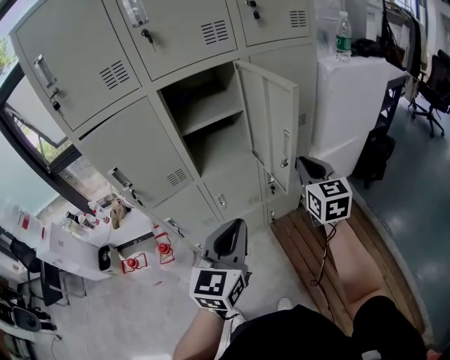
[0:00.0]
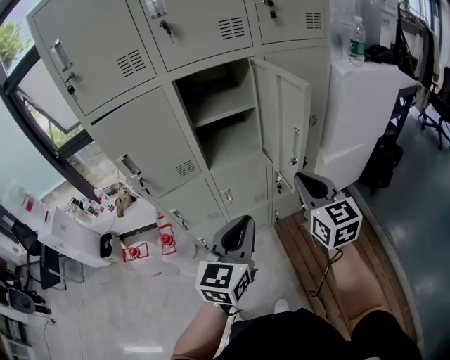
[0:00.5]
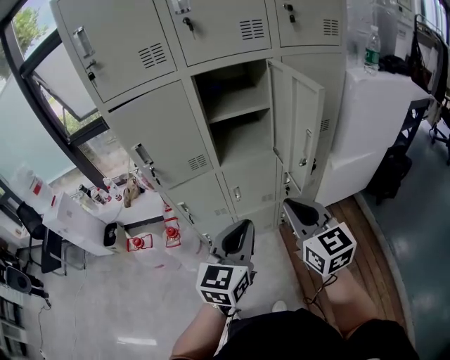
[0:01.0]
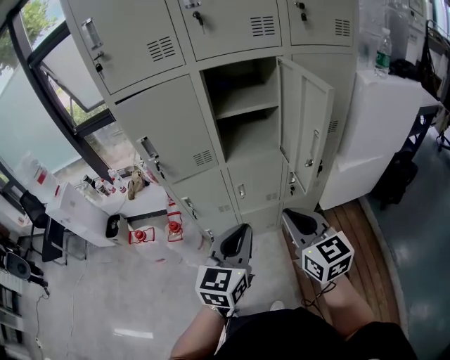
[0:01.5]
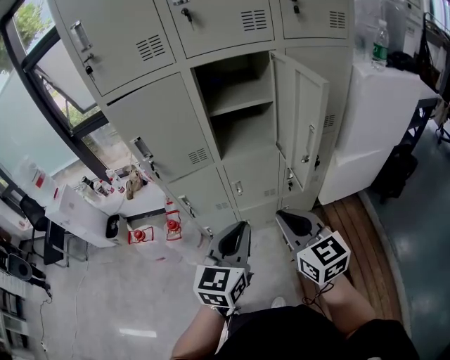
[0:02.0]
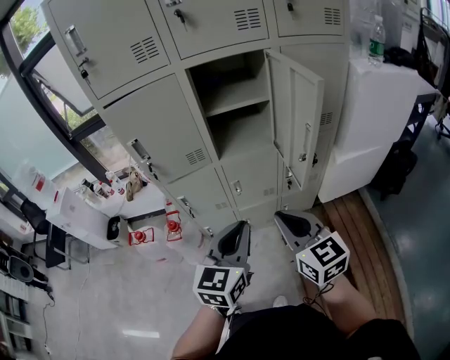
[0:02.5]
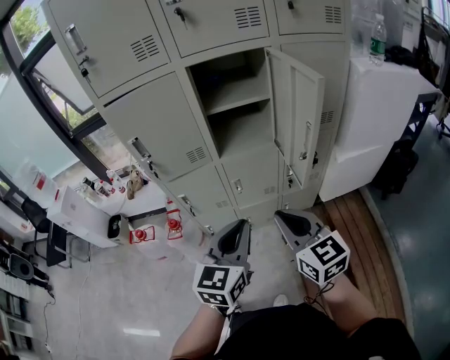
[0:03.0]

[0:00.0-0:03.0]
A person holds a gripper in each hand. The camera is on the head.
0:00.0 to 0:01.5: The left gripper ends up some 5 cm from where it was; the right gripper is displaced backward and to the left by approximately 20 cm, and changes its angle by roughly 30 degrees.
0:01.5 to 0:03.0: The grippers move only a little.

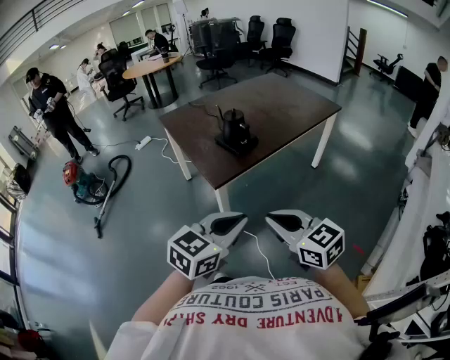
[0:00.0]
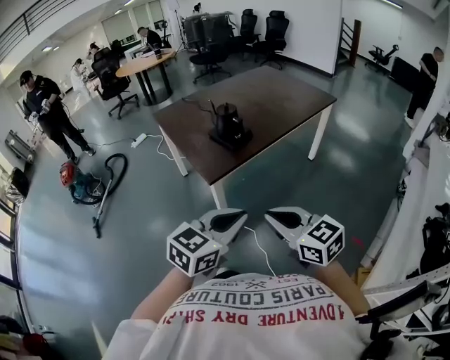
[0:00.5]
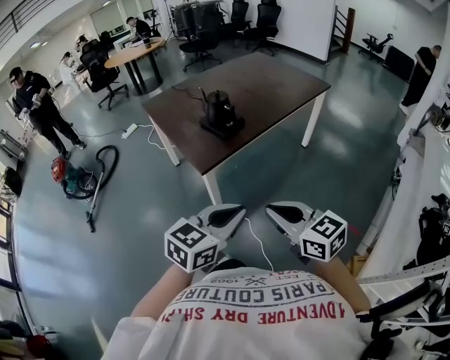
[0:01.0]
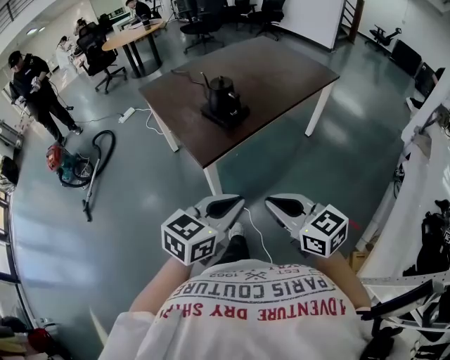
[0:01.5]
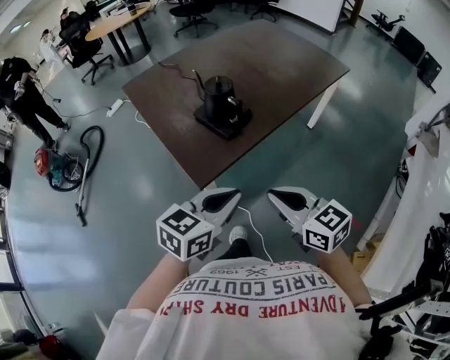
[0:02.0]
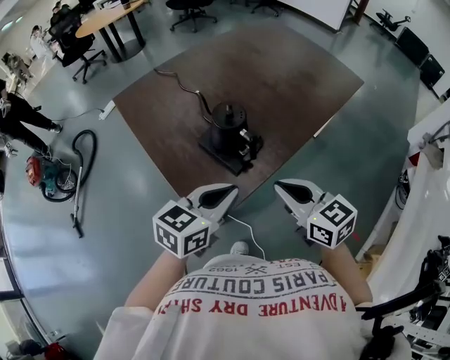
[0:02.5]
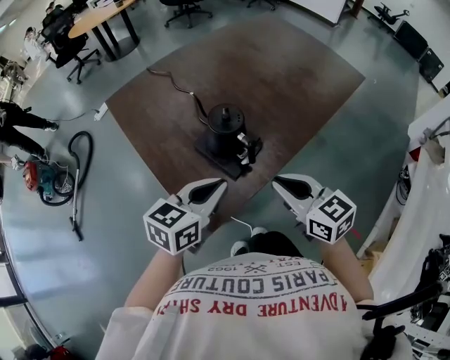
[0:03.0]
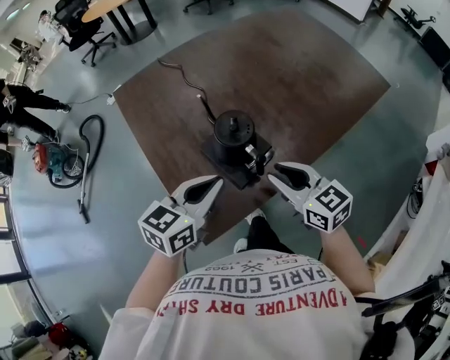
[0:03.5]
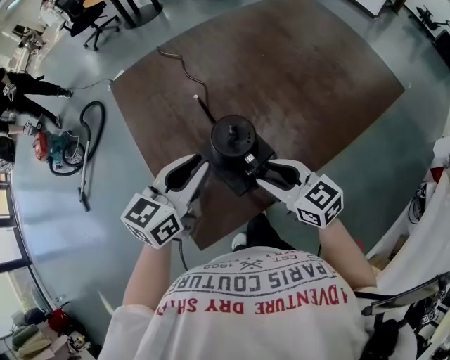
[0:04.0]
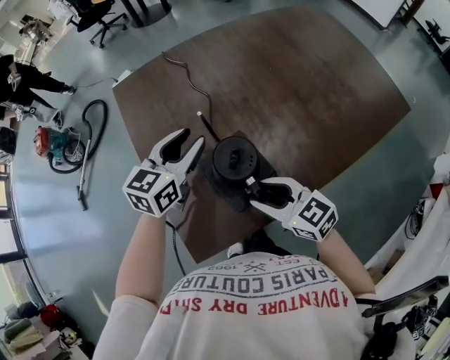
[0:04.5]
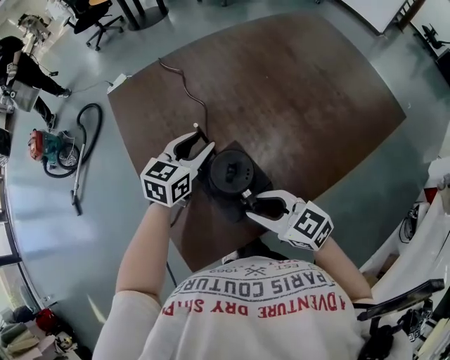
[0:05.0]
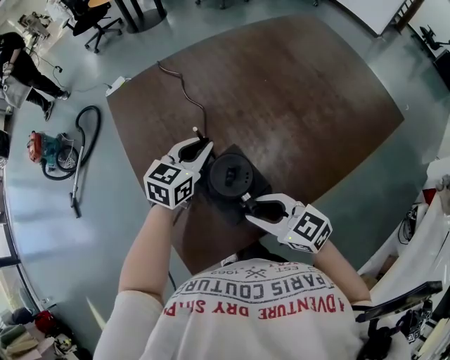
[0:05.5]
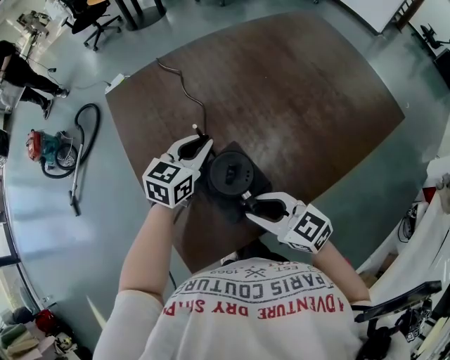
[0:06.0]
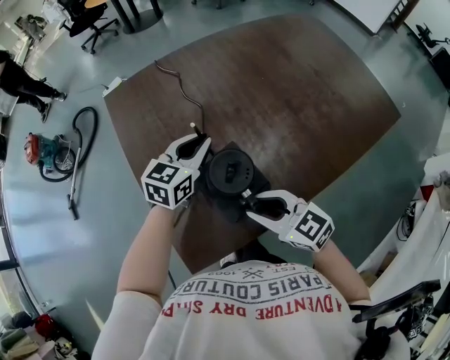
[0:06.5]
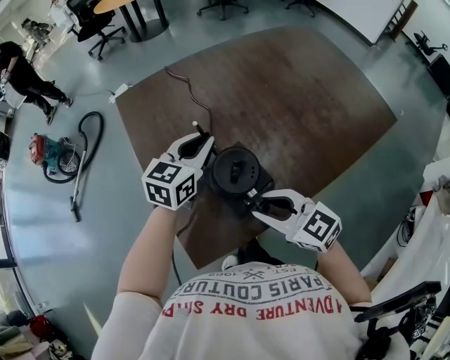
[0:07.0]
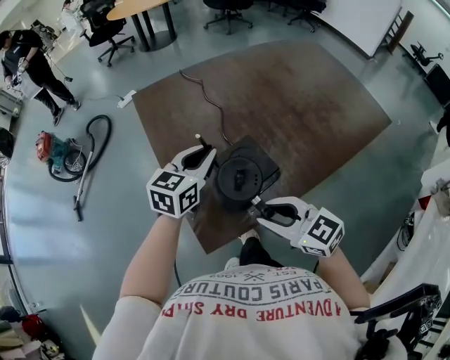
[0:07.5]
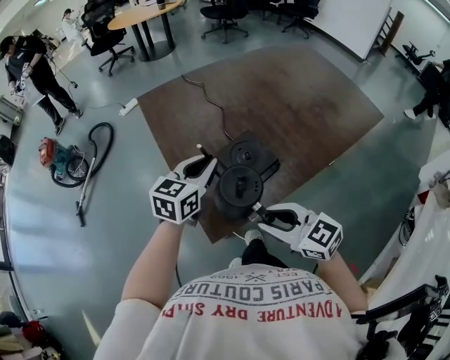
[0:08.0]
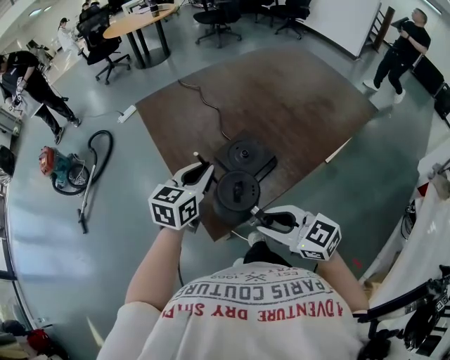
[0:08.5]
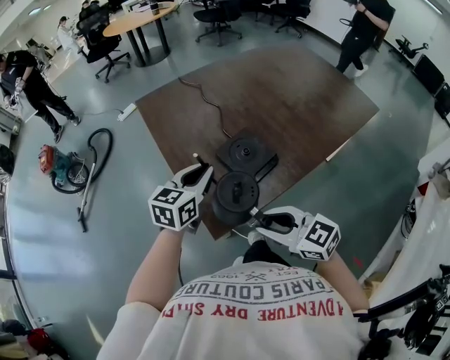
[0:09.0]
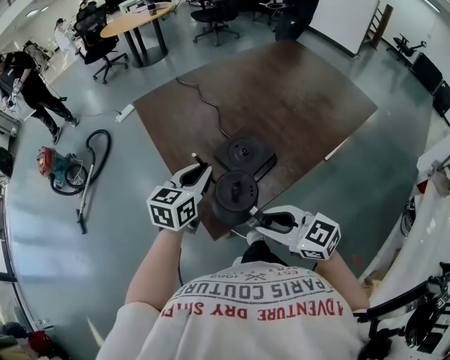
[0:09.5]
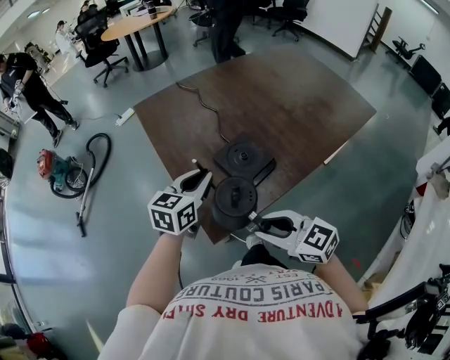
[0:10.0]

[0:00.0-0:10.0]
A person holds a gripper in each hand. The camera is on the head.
0:00.0 to 0:02.0: The right gripper is displaced forward by some 20 cm; the left gripper goes some 20 cm forward and downward.
0:02.0 to 0:04.0: Both grippers move forward, about 30 cm. The left gripper swivels about 20 degrees, and opens up. Meanwhile the right gripper opens its fingers.
0:04.0 to 0:06.0: The left gripper goes about 15 cm forward and downward, and opens, then closes again.
0:06.0 to 0:08.0: Both grippers move backward, to the left and upward, approximately 15 cm.
0:08.0 to 0:10.0: The grippers stay close to where they were, moving slightly.

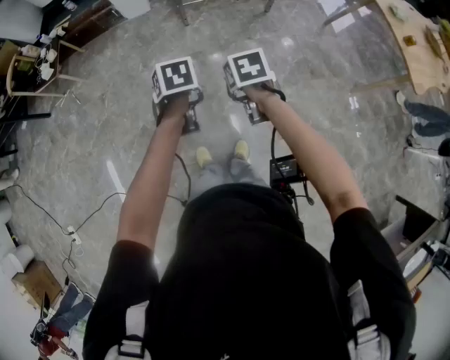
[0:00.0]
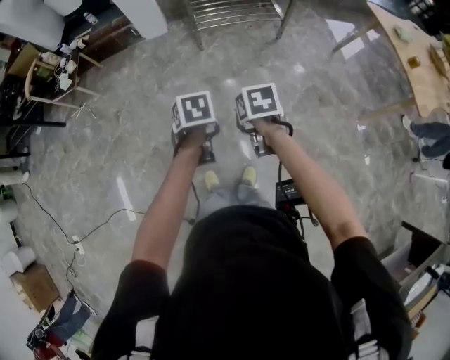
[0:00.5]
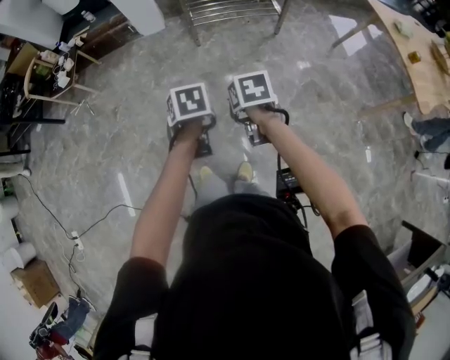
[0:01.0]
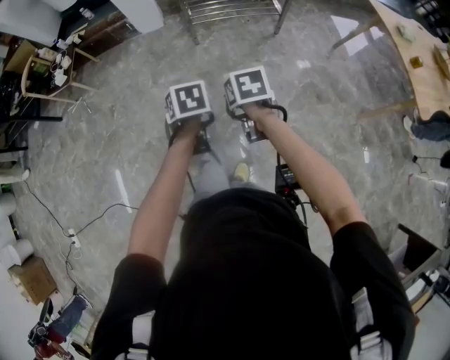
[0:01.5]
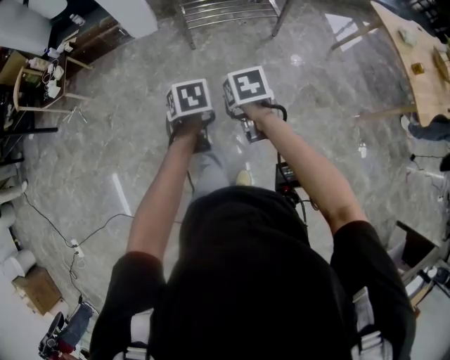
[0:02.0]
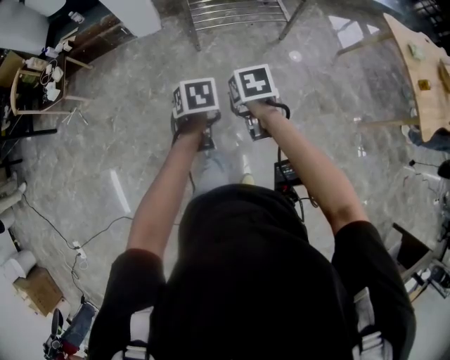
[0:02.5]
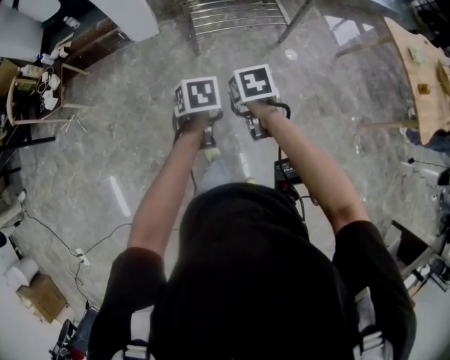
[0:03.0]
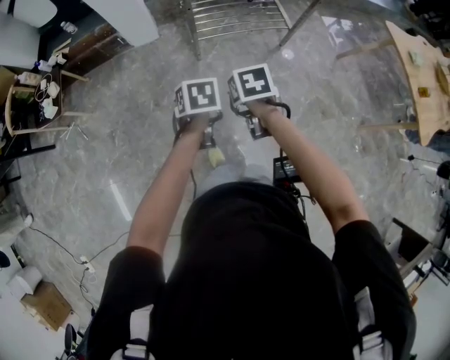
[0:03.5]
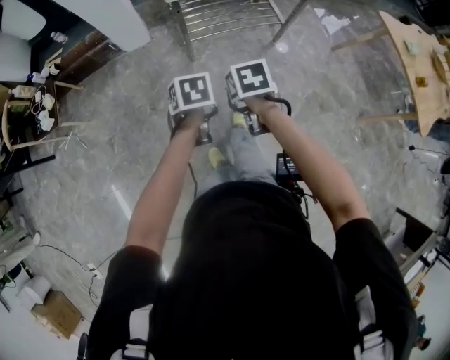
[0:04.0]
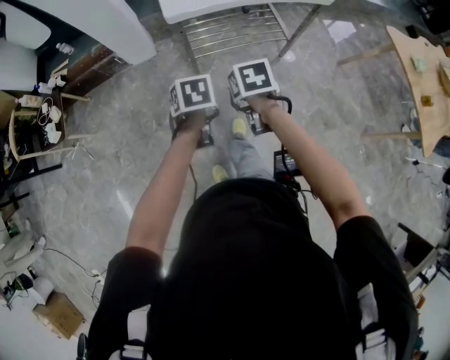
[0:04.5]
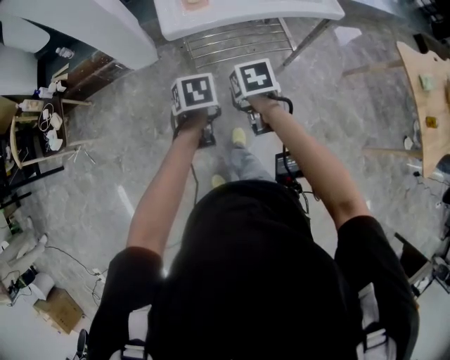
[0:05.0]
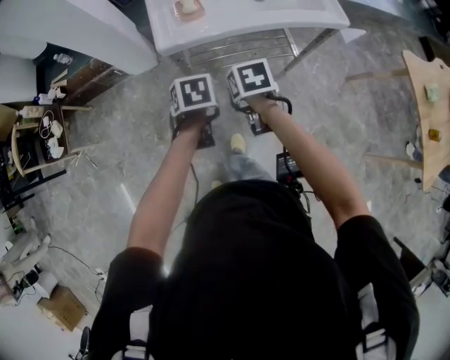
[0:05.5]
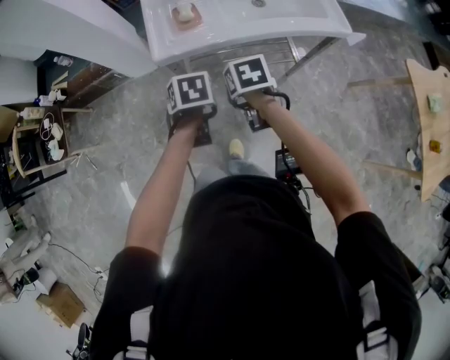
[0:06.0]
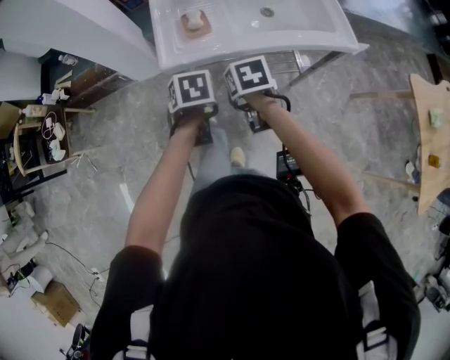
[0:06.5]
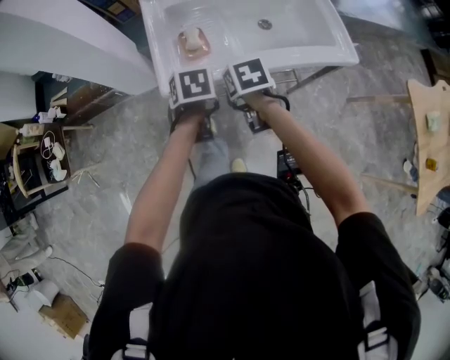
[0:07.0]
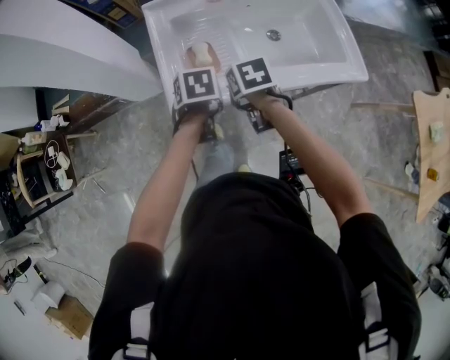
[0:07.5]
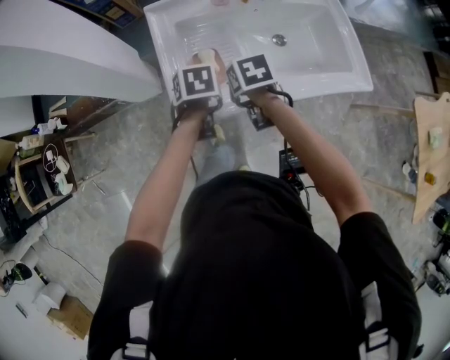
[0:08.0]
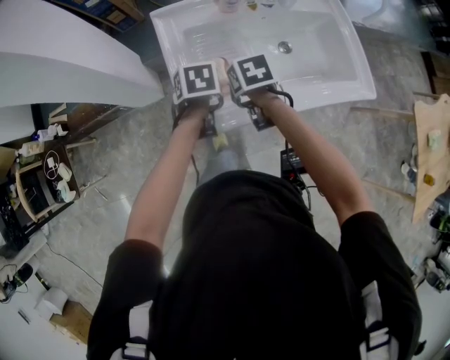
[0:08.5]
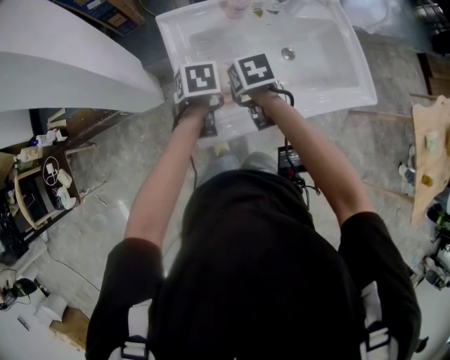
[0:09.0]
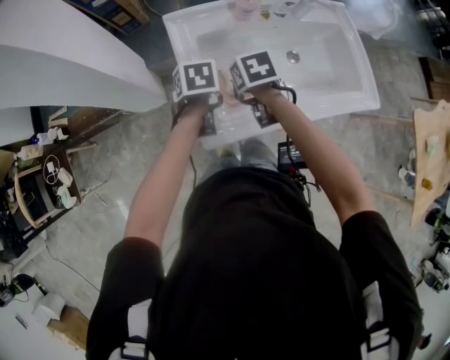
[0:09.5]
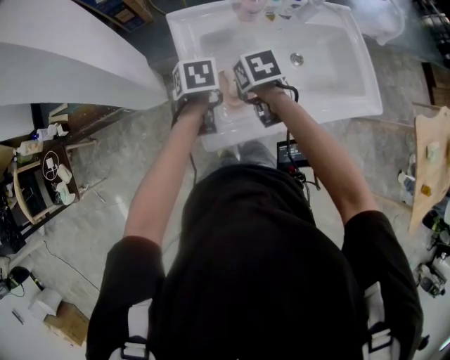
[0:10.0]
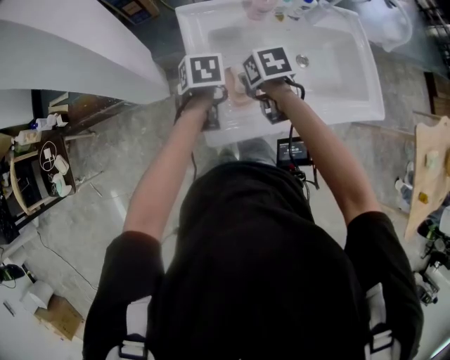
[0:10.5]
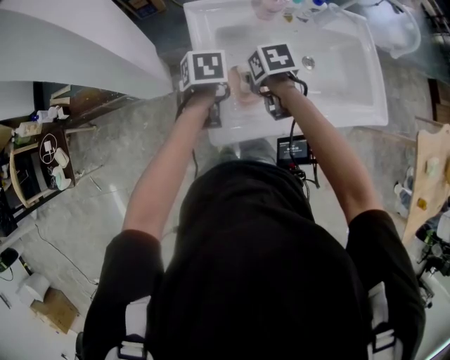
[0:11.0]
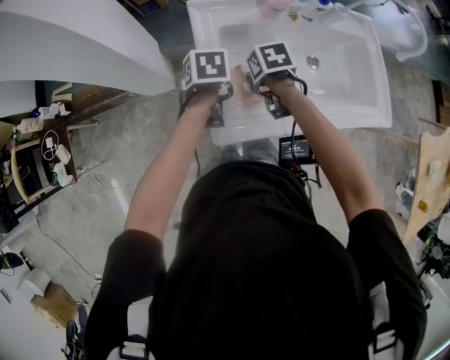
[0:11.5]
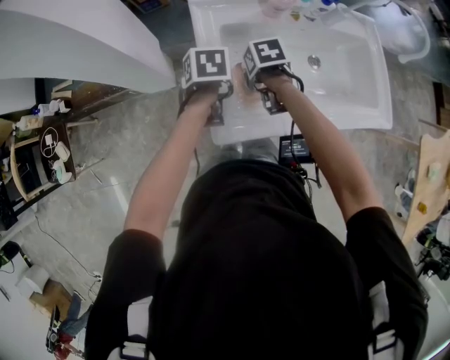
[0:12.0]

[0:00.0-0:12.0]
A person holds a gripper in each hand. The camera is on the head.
0:00.0 to 0:02.0: The left gripper heads forward and to the right, covering about 10 cm. Meanwhile the right gripper moves forward, roughly 10 cm.
0:02.0 to 0:04.0: The two grippers go roughly 25 cm forward.
0:04.0 to 0:06.0: Both grippers move forward and to the right, roughly 35 cm.
0:06.0 to 0:08.0: The grippers both shift forward by some 25 cm.
0:08.0 to 0:10.0: The grippers both shift forward and to the left by about 10 cm.
0:10.0 to 0:12.0: The right gripper moves downward, about 5 cm, and opens.

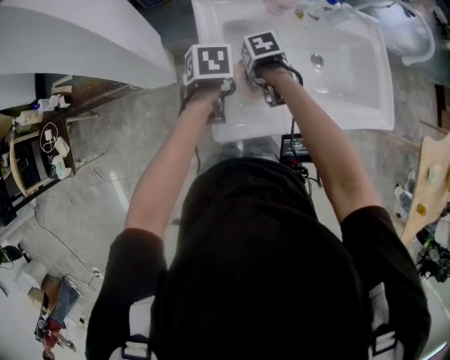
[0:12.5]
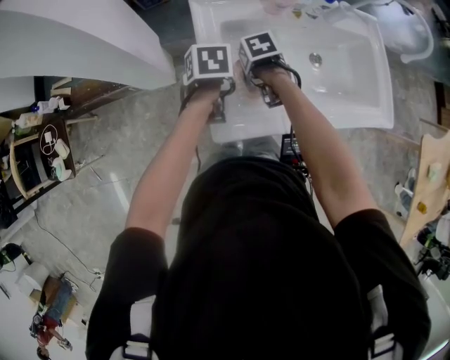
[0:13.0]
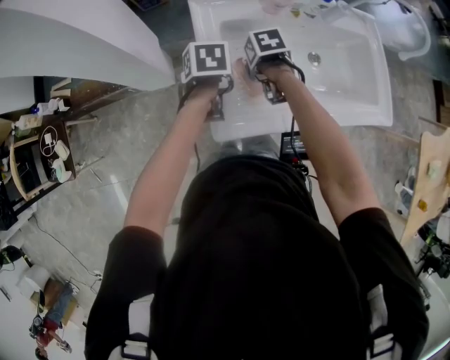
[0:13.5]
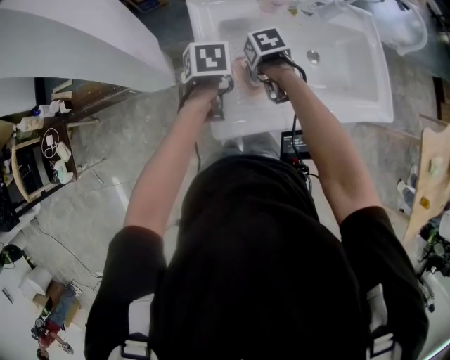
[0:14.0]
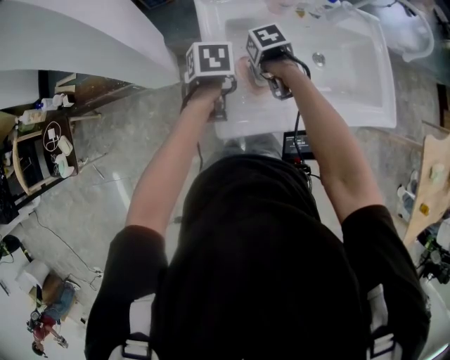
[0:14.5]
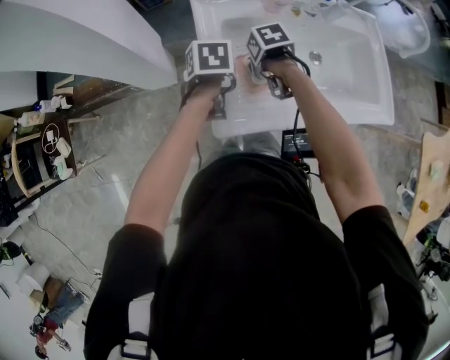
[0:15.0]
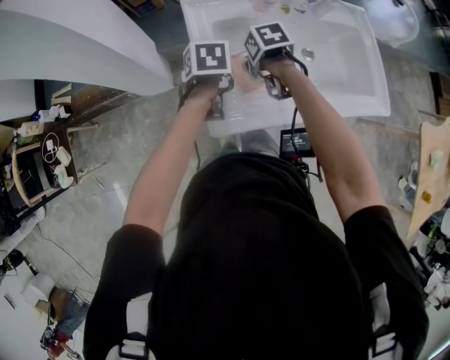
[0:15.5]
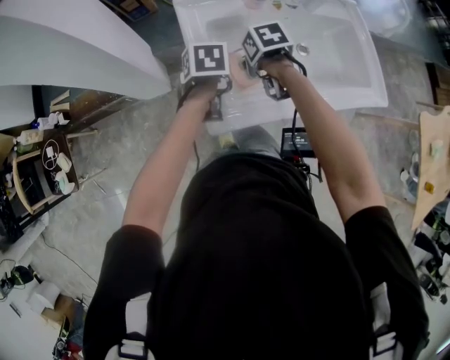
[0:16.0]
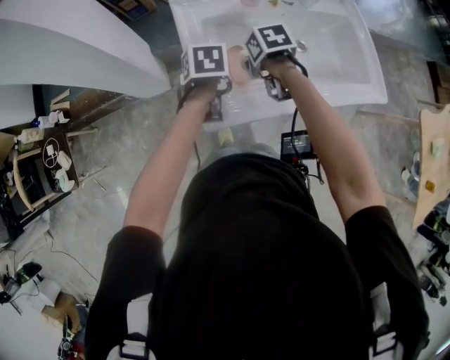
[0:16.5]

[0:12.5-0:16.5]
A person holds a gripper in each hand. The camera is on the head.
0:12.5 to 0:14.5: The grippers stay close to where they were, moving slightly.
0:14.5 to 0:16.5: The right gripper shifts by about 5 cm.
